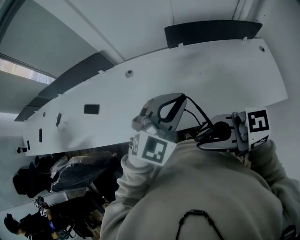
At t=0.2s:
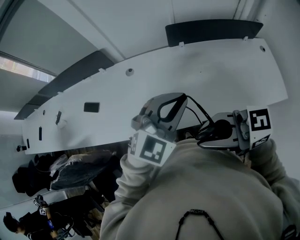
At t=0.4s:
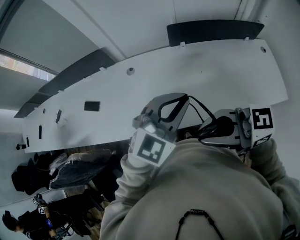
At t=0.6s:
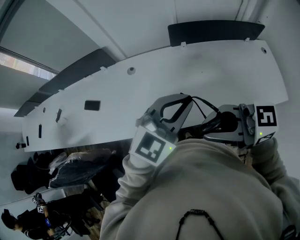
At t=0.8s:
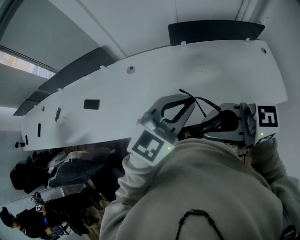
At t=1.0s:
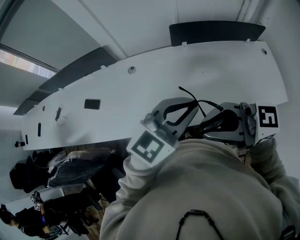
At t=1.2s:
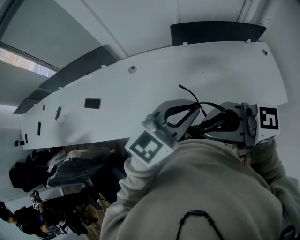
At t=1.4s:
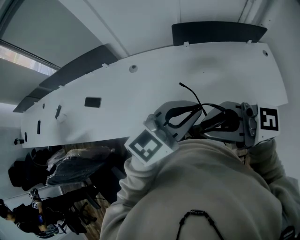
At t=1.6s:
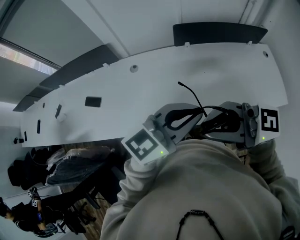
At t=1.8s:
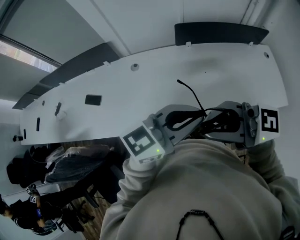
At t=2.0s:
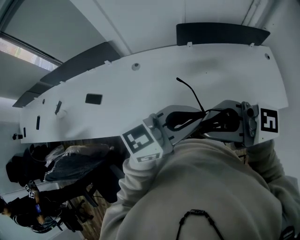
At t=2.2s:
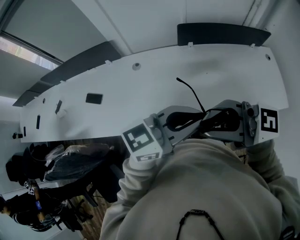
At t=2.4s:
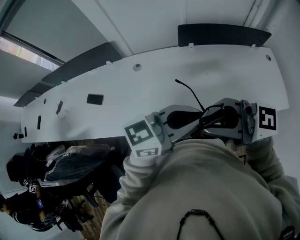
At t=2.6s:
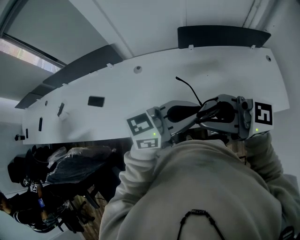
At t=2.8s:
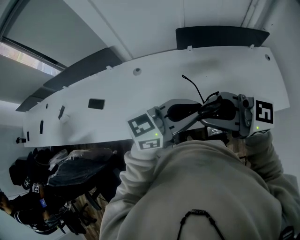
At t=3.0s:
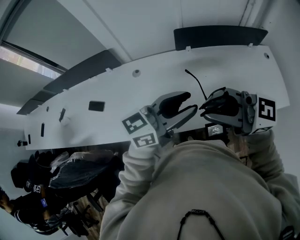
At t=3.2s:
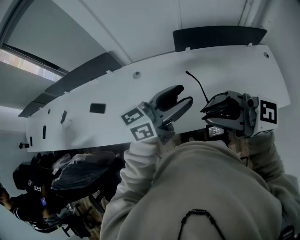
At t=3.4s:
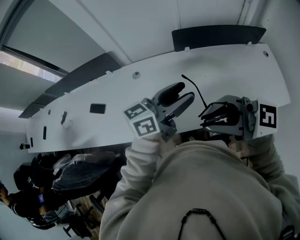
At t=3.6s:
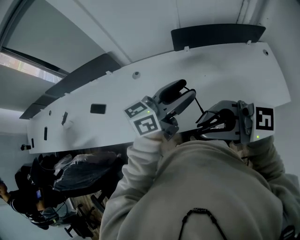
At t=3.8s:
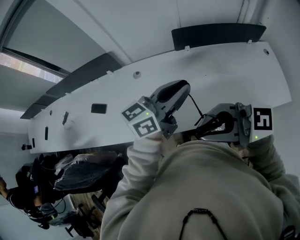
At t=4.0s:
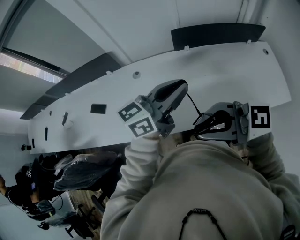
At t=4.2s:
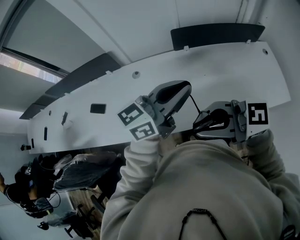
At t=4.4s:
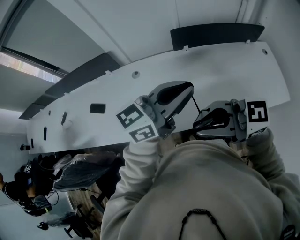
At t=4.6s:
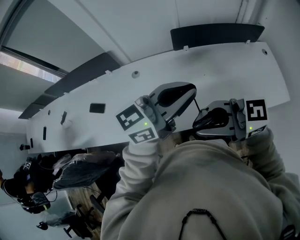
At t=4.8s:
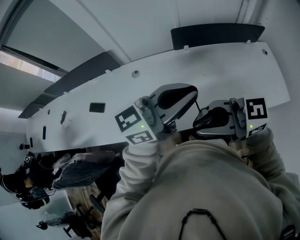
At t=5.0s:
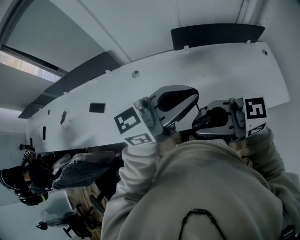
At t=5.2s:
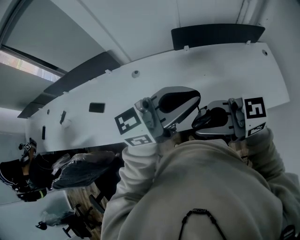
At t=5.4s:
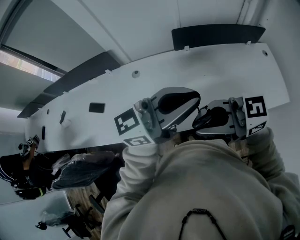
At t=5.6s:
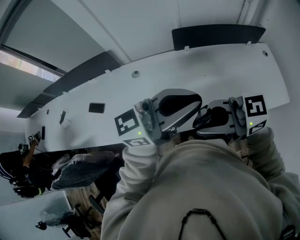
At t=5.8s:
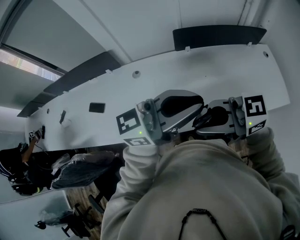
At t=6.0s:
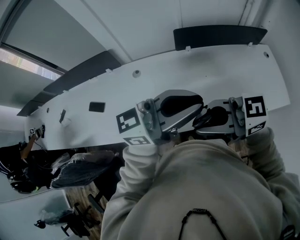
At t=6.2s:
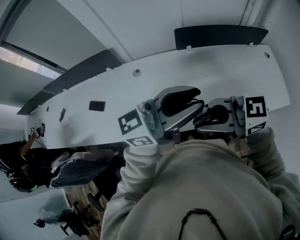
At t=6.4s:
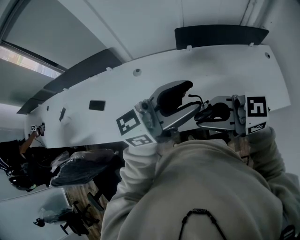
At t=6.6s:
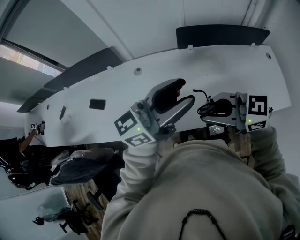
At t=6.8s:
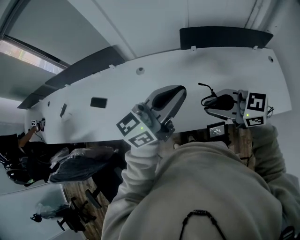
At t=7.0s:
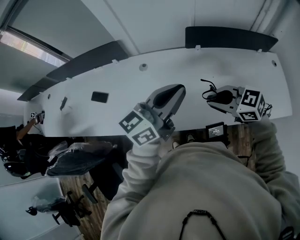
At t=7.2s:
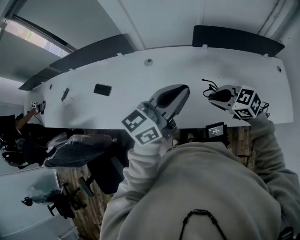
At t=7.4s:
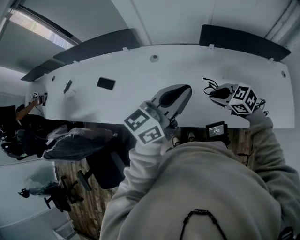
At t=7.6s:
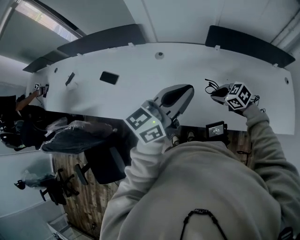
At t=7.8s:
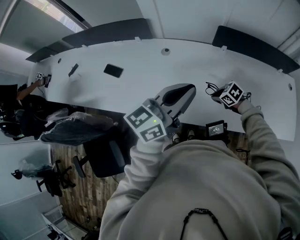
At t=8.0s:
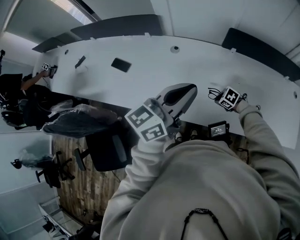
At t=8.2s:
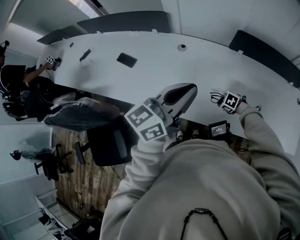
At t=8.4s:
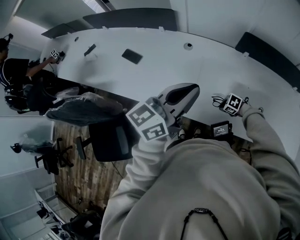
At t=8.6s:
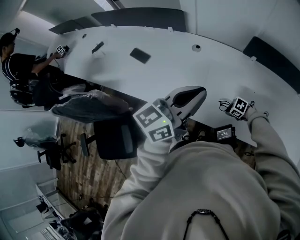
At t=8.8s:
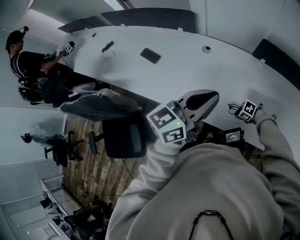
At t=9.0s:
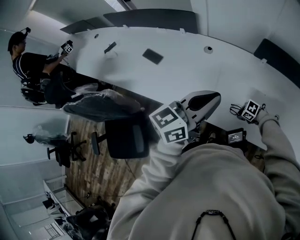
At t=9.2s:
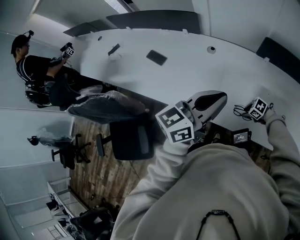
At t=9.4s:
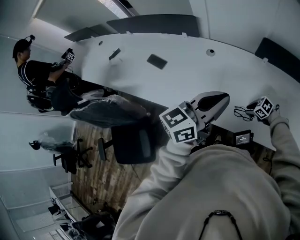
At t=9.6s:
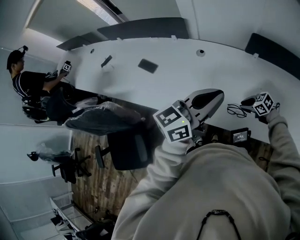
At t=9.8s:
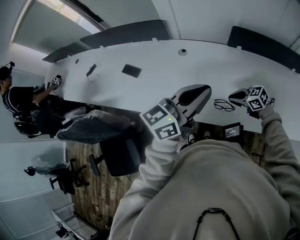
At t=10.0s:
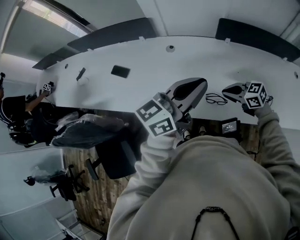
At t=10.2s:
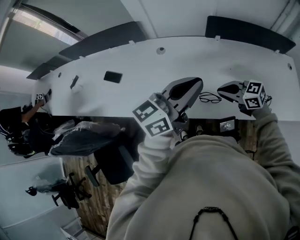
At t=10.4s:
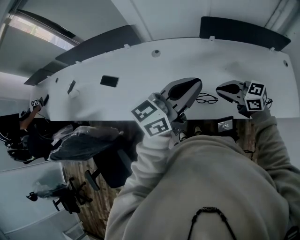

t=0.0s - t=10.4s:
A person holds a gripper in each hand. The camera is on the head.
t=0.0s - t=1.4s: The right gripper changes place by approximately 5 cm. Meanwhile the left gripper shifts by roughly 5 cm, and swivels about 30 degrees.
t=1.4s - t=3.0s: The left gripper swivels roughly 20 degrees, and opens.
t=3.0s - t=4.4s: The left gripper closes. Meanwhile the right gripper changes place by roughly 5 cm.
t=4.4s - t=6.0s: The left gripper moves approximately 5 cm.
t=6.0s - t=7.4s: The left gripper ends up roughly 15 cm from where it was, rotates roughly 40 degrees, and opens, then closes again; the right gripper moves downward, roughly 20 cm, and tilts its fingers some 40 degrees downward.
t=7.4s - t=9.0s: The right gripper shifts some 25 cm downward, and swivels about 40 degrees. The left gripper shifts by approximately 10 cm.
t=9.0s - t=10.4s: The right gripper moves upward, some 30 cm, and angles its fingers upward, by roughly 40 degrees. The left gripper changes place by roughly 10 cm.

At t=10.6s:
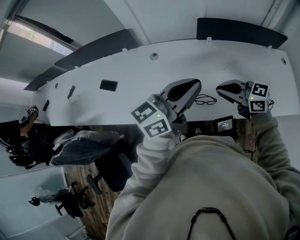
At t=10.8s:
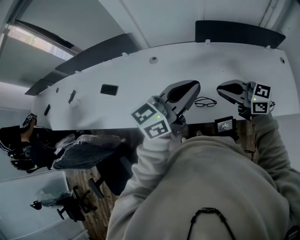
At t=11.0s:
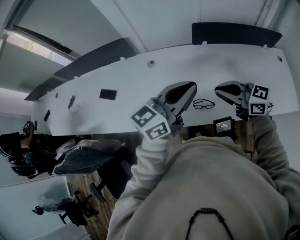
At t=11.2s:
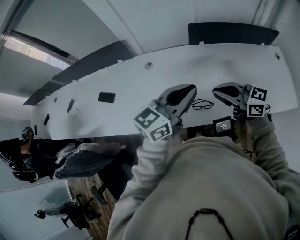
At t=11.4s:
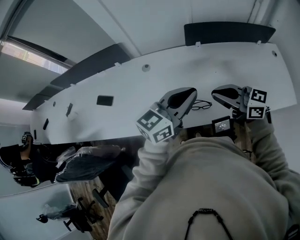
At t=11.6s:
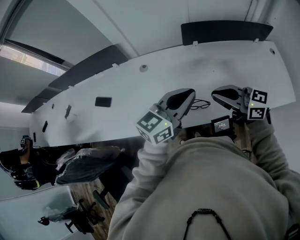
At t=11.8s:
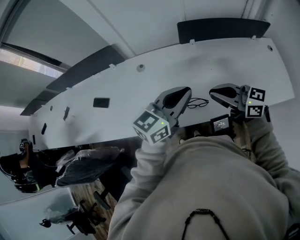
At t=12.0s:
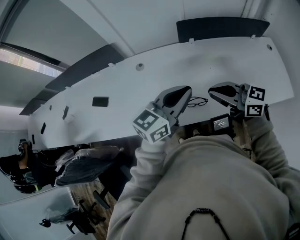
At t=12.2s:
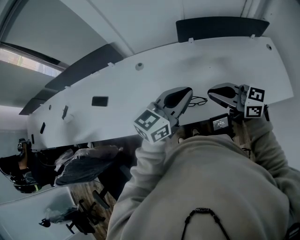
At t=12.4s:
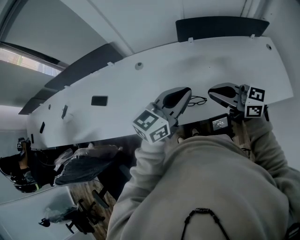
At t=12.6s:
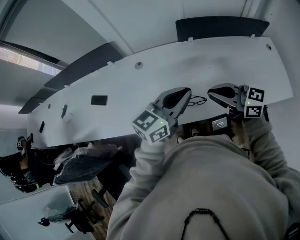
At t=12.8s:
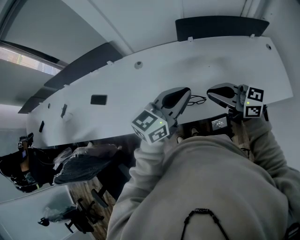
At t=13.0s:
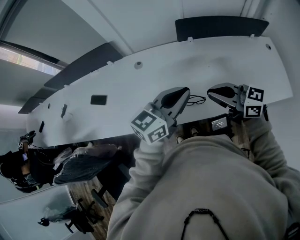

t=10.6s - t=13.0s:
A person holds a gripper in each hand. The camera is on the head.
t=10.6s - t=11.8s: The left gripper shifts by approximately 5 cm.
t=11.8s - t=13.0s: The grippers move only a little.

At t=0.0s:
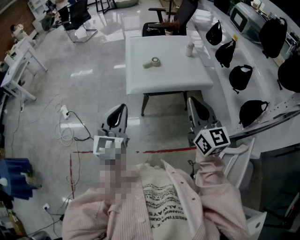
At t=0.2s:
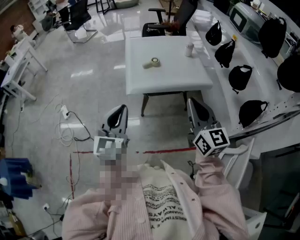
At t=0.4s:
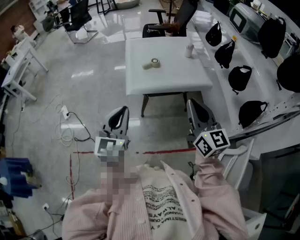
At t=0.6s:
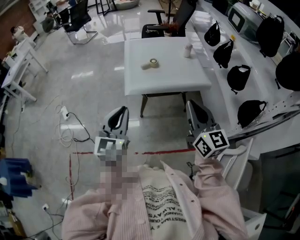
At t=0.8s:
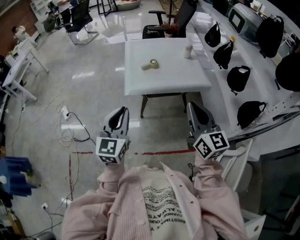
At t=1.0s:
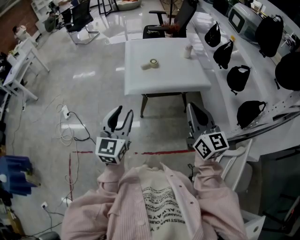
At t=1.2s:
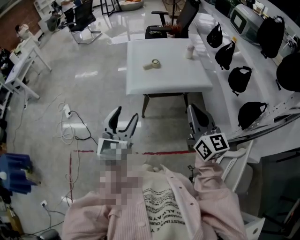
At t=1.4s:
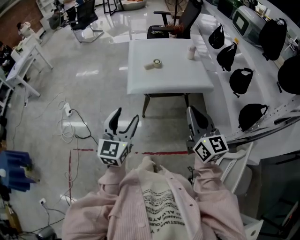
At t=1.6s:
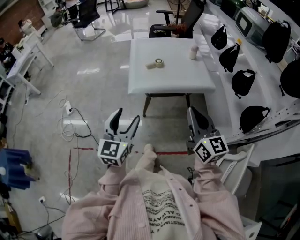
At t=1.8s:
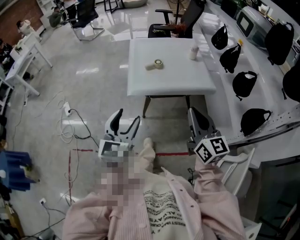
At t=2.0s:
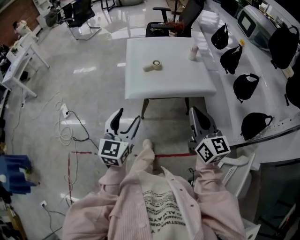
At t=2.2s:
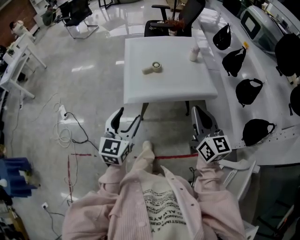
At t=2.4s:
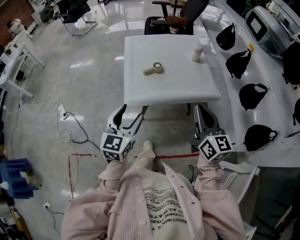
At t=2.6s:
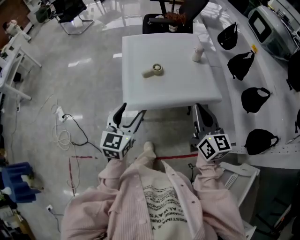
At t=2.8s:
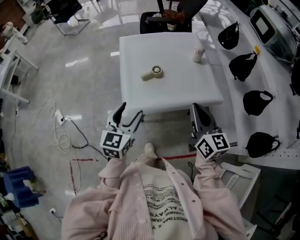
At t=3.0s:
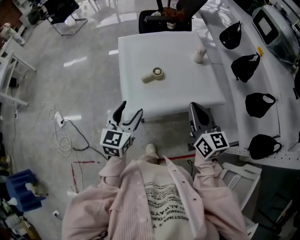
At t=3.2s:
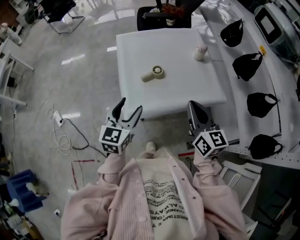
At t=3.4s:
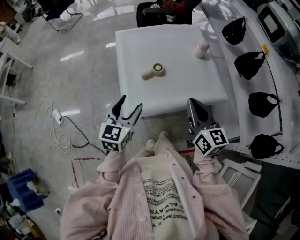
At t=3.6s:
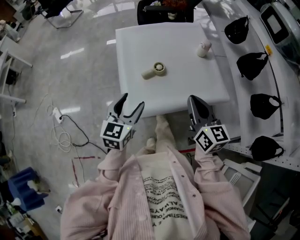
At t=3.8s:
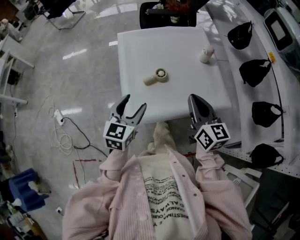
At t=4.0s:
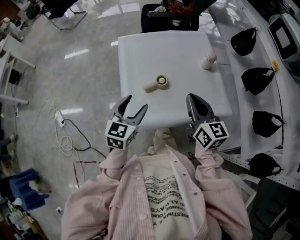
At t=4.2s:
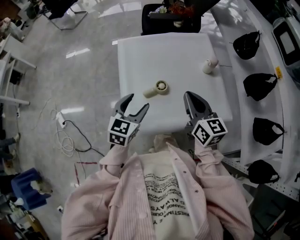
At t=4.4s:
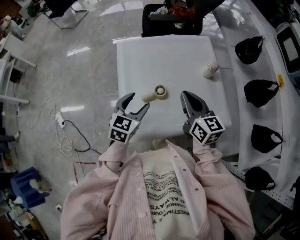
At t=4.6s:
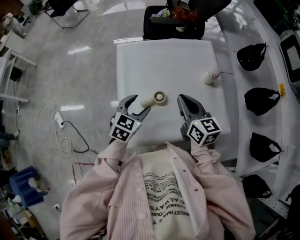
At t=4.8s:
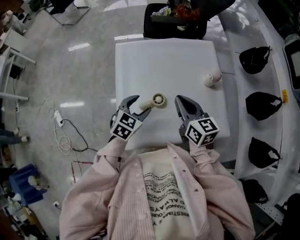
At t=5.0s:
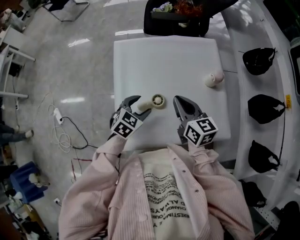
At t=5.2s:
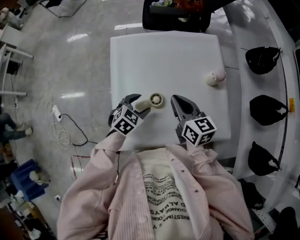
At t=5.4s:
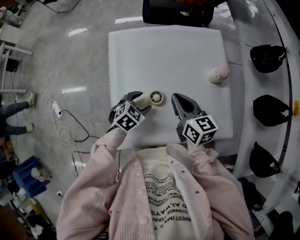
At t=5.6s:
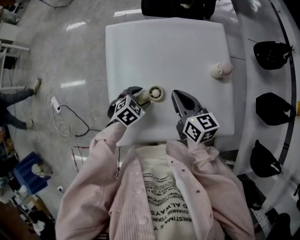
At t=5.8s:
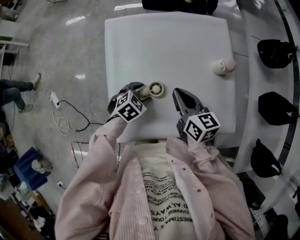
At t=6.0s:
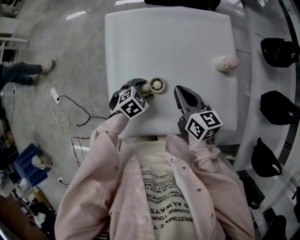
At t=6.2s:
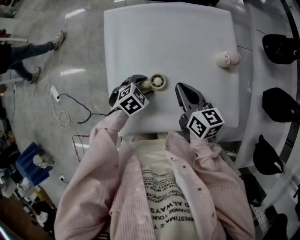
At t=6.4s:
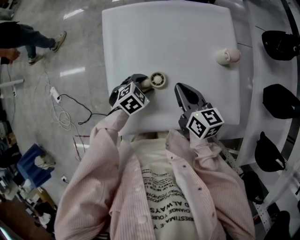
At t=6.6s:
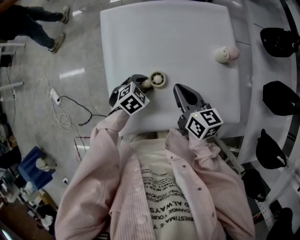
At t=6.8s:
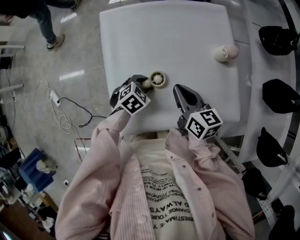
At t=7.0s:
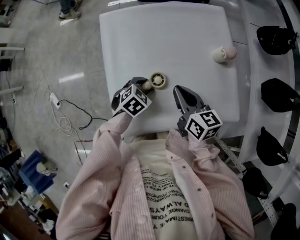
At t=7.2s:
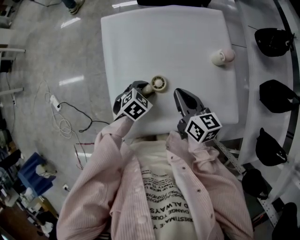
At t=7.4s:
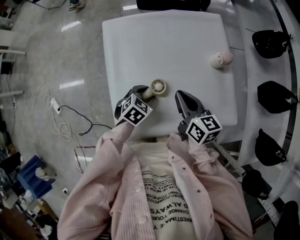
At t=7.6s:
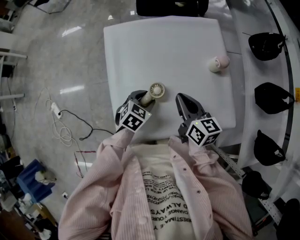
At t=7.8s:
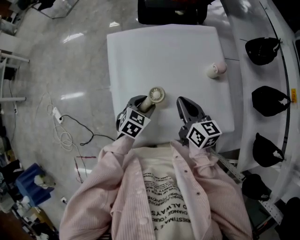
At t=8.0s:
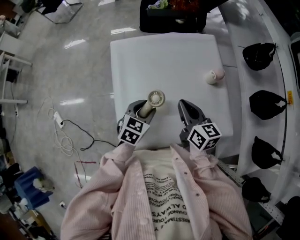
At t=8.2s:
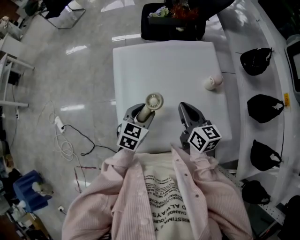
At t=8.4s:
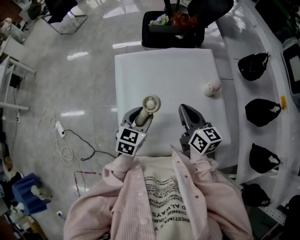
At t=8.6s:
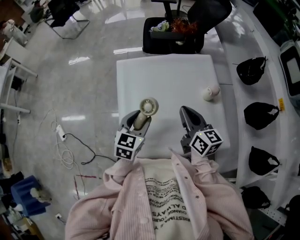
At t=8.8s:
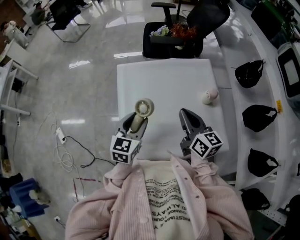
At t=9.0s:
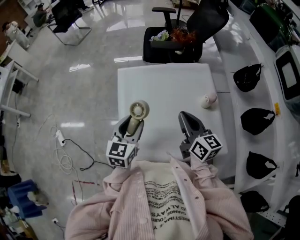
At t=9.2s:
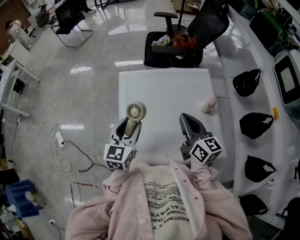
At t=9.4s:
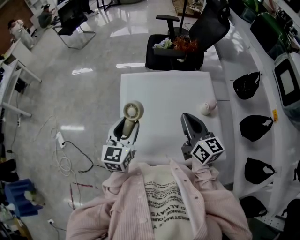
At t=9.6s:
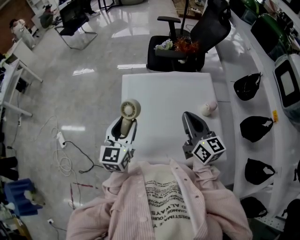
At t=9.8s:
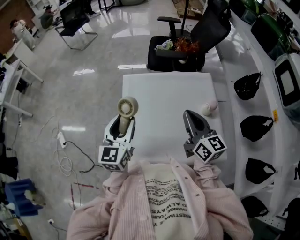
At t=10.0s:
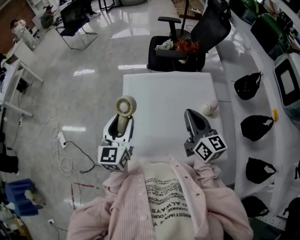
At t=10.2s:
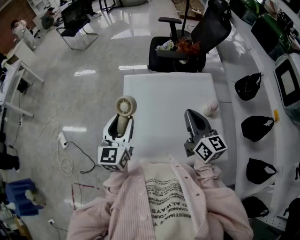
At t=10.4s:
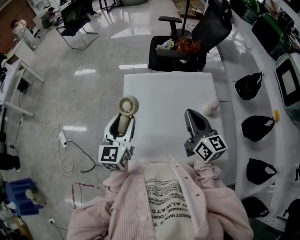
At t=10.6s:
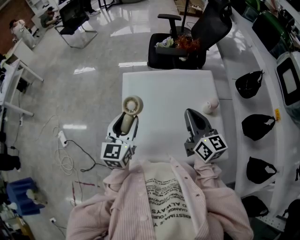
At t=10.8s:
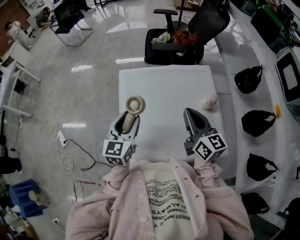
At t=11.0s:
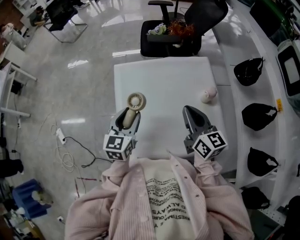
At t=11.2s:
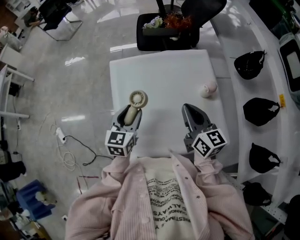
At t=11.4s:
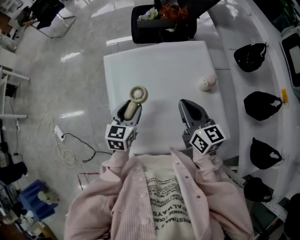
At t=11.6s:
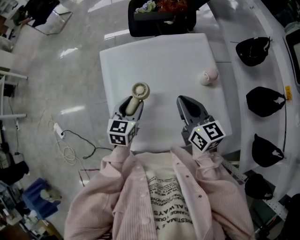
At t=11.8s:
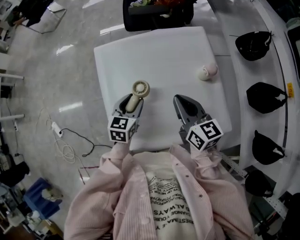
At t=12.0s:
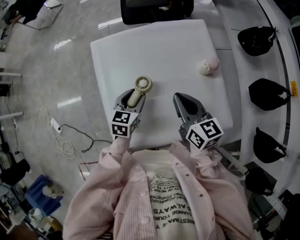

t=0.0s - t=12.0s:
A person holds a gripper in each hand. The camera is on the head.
t=0.0s - t=1.6s: The left gripper changes place by about 5 cm, and opens.
t=1.6s - t=3.0s: Both grippers move forward, some 25 cm.
t=3.0s - t=4.4s: The two grippers go approximately 20 cm forward.
t=4.4s - t=6.0s: The right gripper goes about 15 cm downward and forward, while the left gripper heads downward, covering about 20 cm, and angles its fingers downward, by about 30 degrees.
t=6.0s - t=7.6s: The grippers stay close to where they were, moving slightly.
t=7.6s - t=9.0s: The left gripper heads upward, covering about 20 cm, and points its fingers approximately 30 degrees further upward; the right gripper travels upward by approximately 10 cm.
t=9.0s - t=10.4s: The left gripper moves upward and to the left, about 10 cm, while the right gripper moves roughly 5 cm.
t=10.4s - t=12.0s: The right gripper travels downward by about 15 cm. Meanwhile the left gripper moves downward and to the right, about 25 cm, and rotates approximately 40 degrees.
